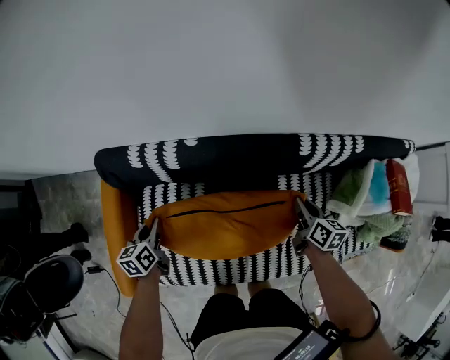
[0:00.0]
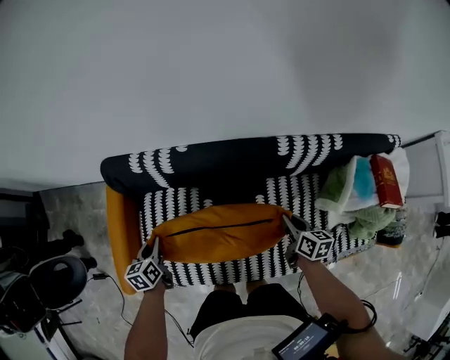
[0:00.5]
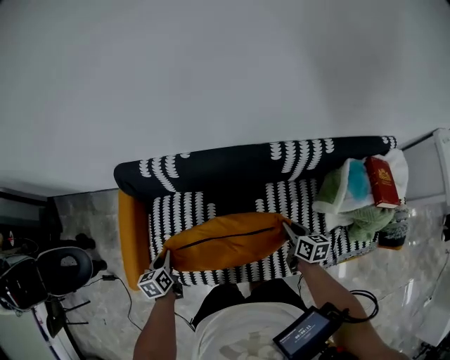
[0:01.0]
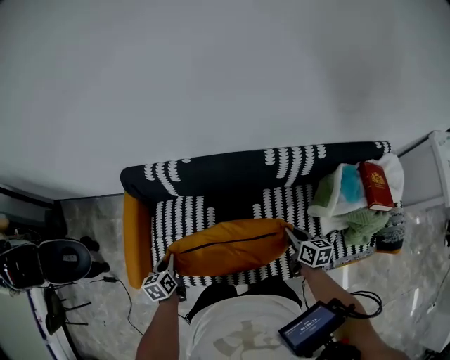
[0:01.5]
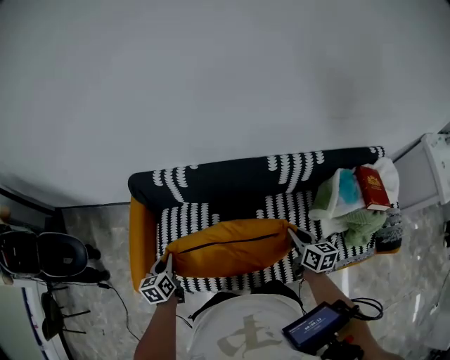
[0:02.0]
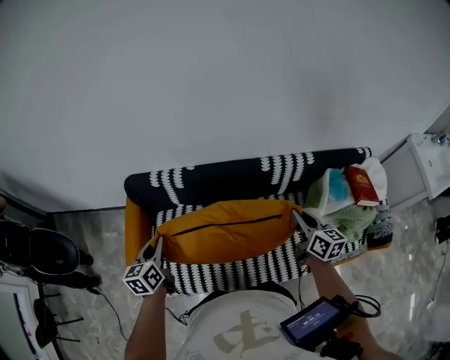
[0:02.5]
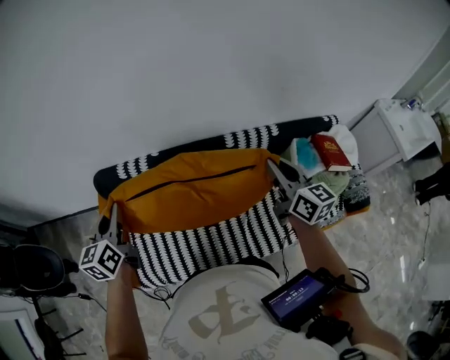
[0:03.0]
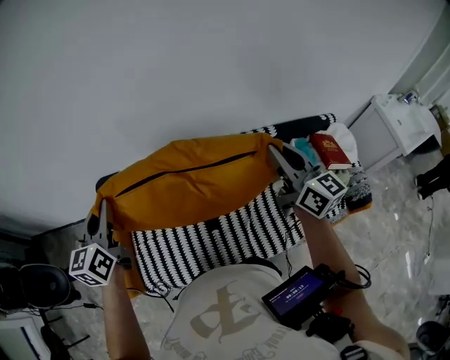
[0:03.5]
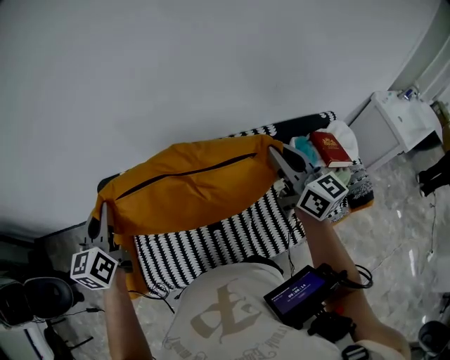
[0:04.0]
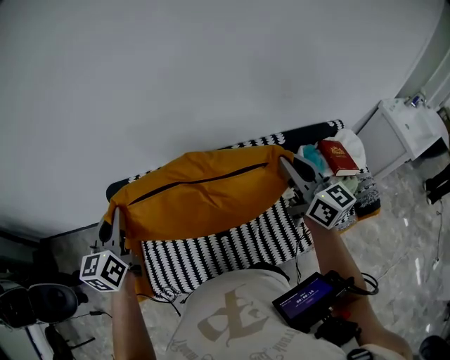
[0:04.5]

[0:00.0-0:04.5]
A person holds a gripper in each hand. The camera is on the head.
0:00.0 to 0:02.0: The left gripper goes some 25 cm backward and upward, while the right gripper goes approximately 20 cm upward and backward.
0:02.0 to 0:04.5: The grippers both shift upward by about 30 cm. The left gripper swivels about 30 degrees. Meanwhile the right gripper points its fingers about 30 degrees further upward.

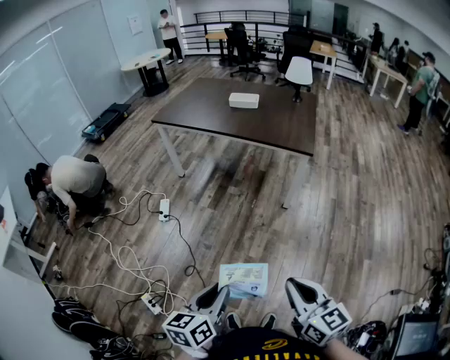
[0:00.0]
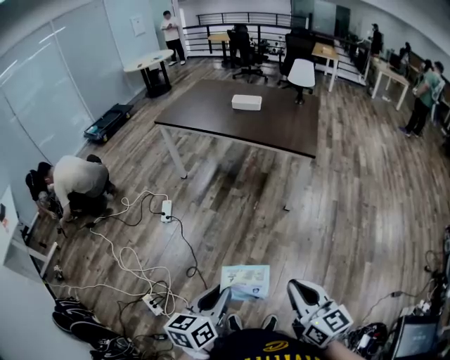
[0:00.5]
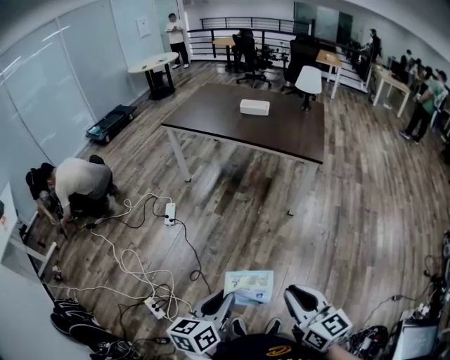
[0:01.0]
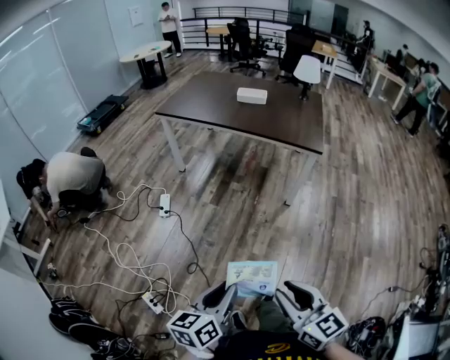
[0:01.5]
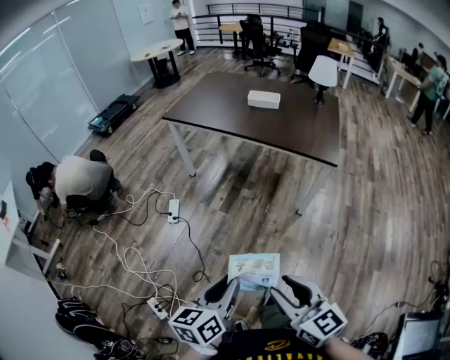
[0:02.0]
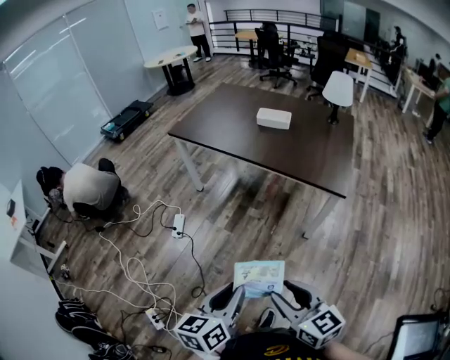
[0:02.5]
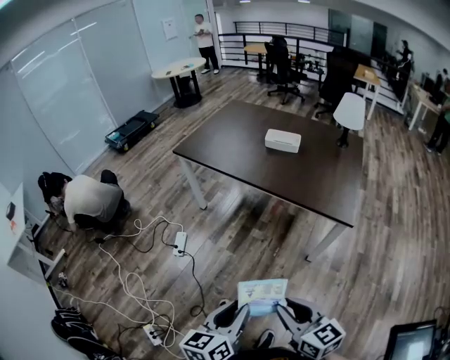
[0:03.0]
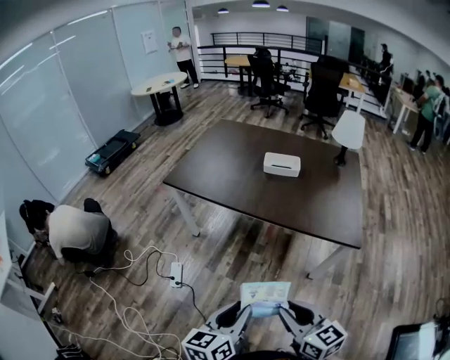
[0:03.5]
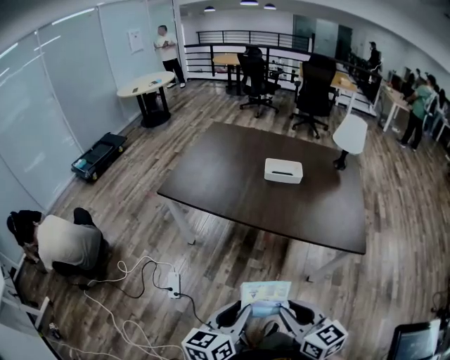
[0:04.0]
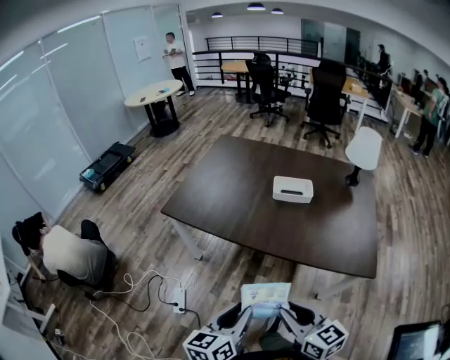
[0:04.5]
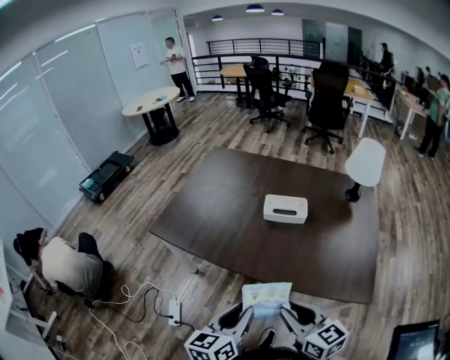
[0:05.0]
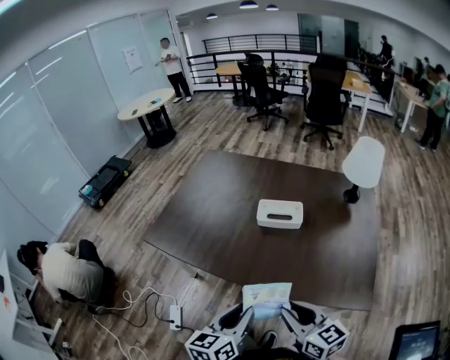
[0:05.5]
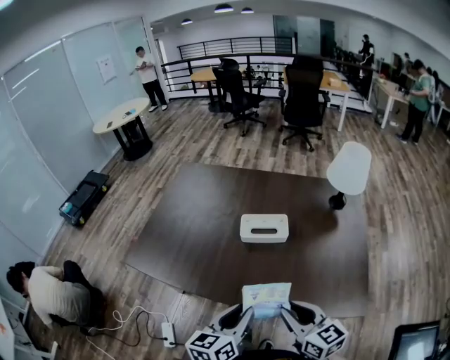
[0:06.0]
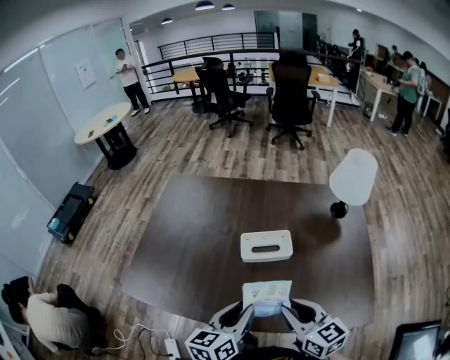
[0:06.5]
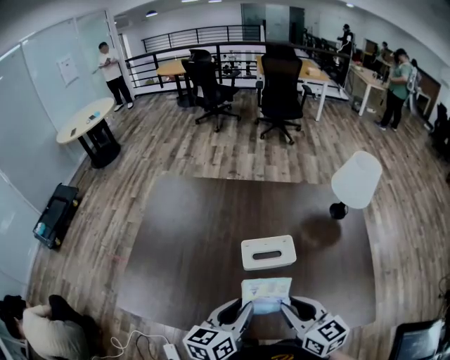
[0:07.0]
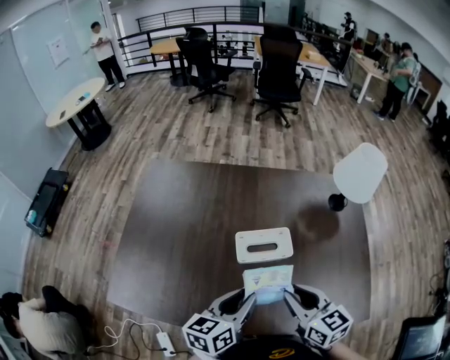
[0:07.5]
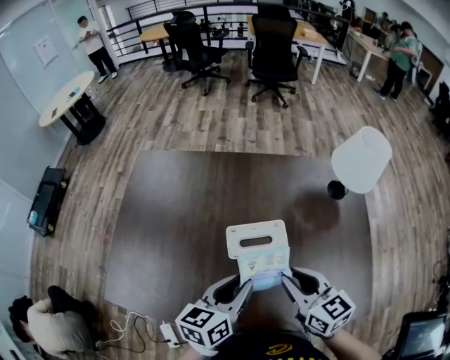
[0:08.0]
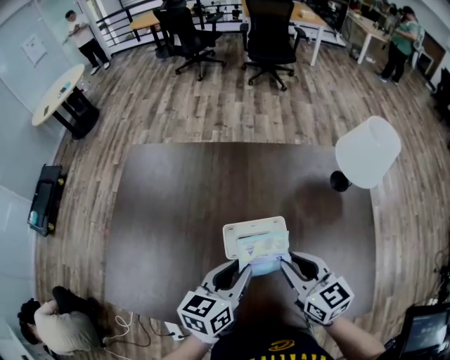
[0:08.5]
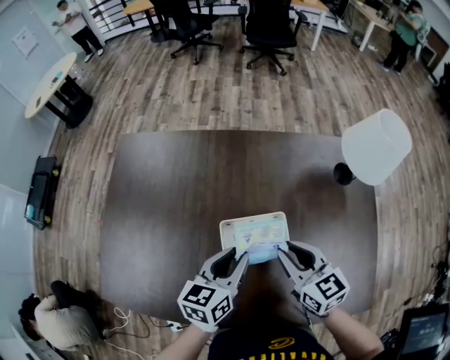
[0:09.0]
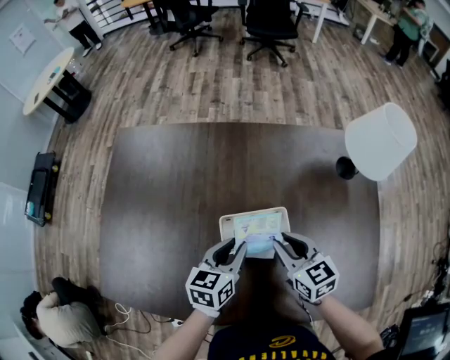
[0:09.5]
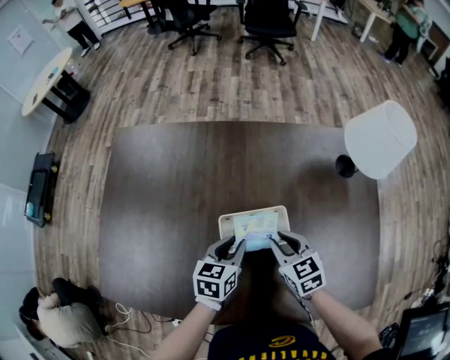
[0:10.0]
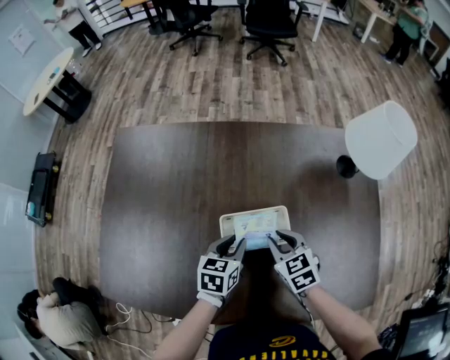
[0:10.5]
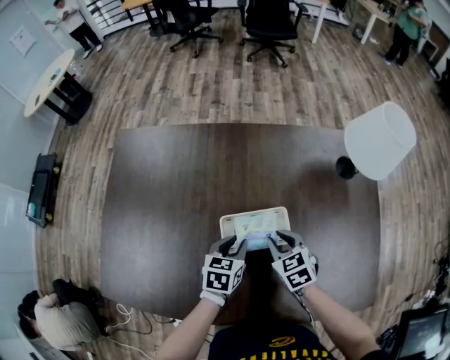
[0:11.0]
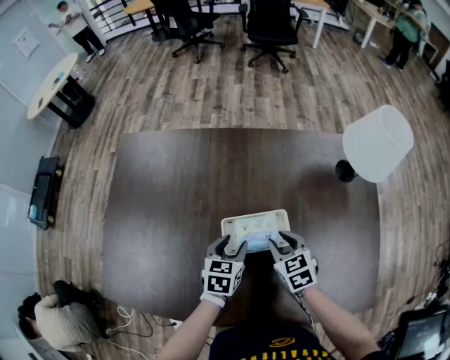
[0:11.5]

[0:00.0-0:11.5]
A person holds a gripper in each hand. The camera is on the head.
0:00.0 to 0:02.0: The left gripper heads forward, covering about 10 cm, while the right gripper heads forward and to the left, covering roughly 15 cm, and opens its fingers.
0:02.0 to 0:04.0: Both grippers are carried forward, about 40 cm.
0:04.0 to 0:06.0: The two grippers go approximately 35 cm forward and to the right.
0:06.0 to 0:07.5: Both grippers move forward, about 20 cm.
0:07.5 to 0:09.5: The two grippers go about 20 cm forward and downward.
0:09.5 to 0:11.5: Both grippers move downward, about 5 cm. The left gripper opens its fingers.

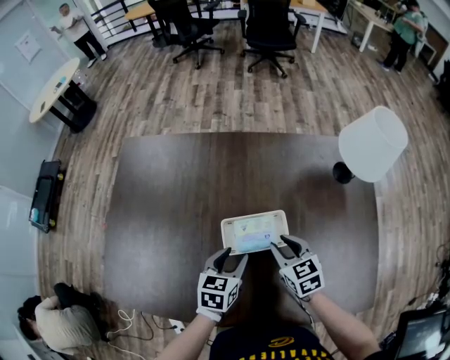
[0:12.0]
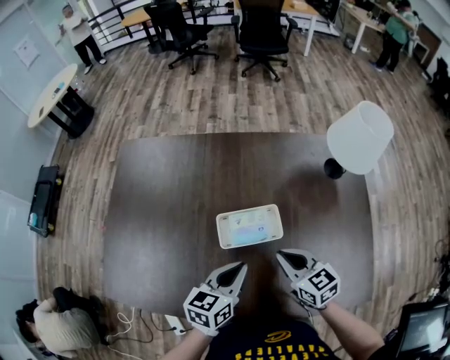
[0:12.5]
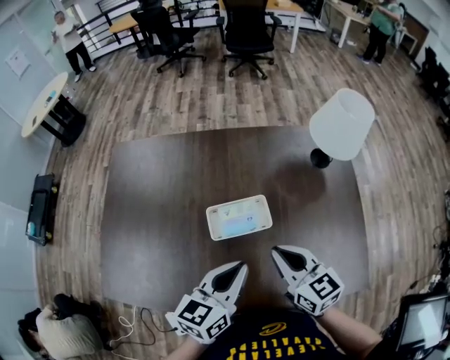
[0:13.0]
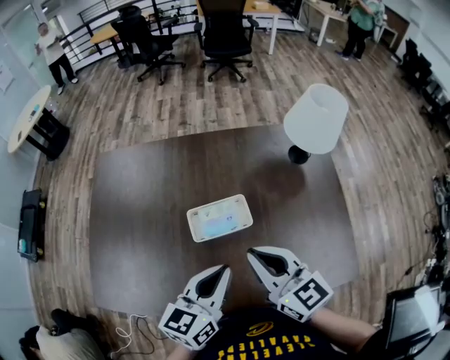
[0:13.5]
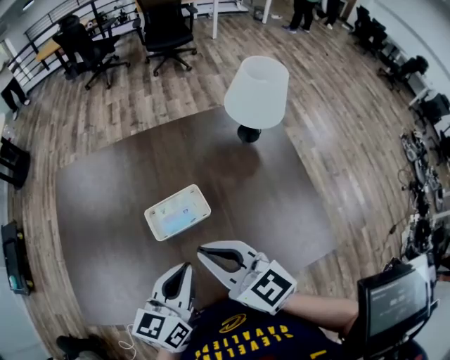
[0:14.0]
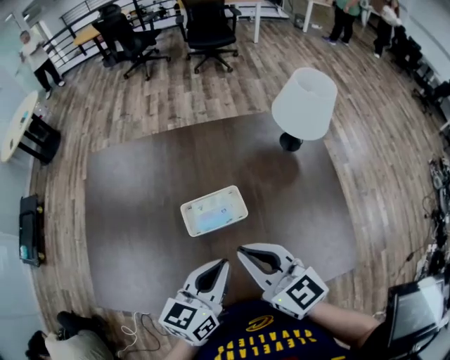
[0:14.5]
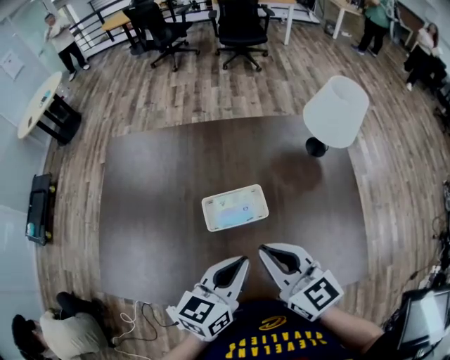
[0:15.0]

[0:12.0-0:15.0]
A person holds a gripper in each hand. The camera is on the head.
0:12.0 to 0:13.5: Both grippers move upward and backward, roughly 20 cm. The left gripper turns by some 30 degrees, and closes its fingers. Meanwhile the right gripper changes its angle by roughly 30 degrees, and closes its fingers.
0:13.5 to 0:15.0: The grippers make only small movements.

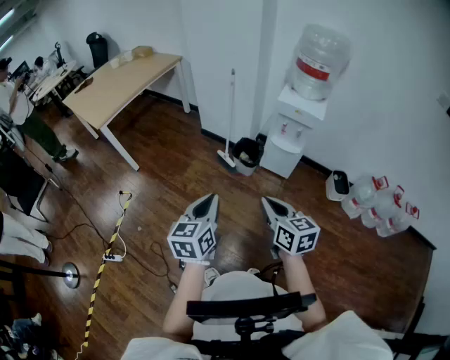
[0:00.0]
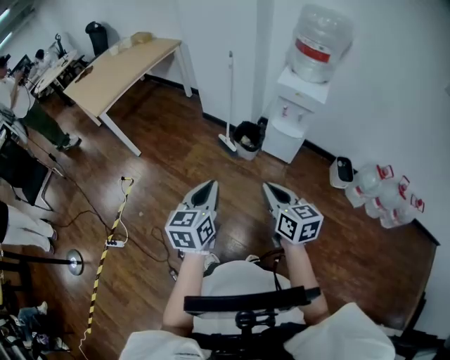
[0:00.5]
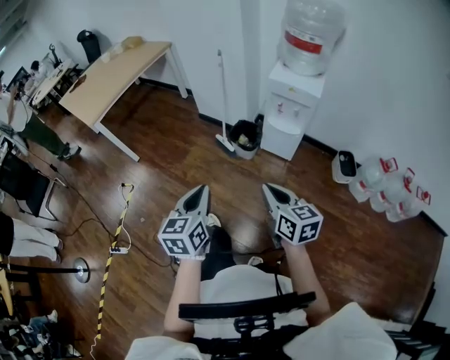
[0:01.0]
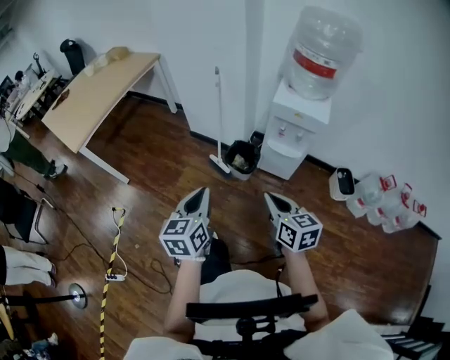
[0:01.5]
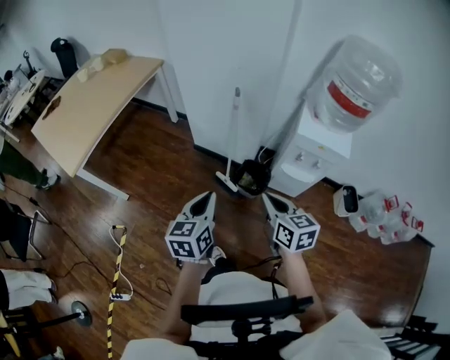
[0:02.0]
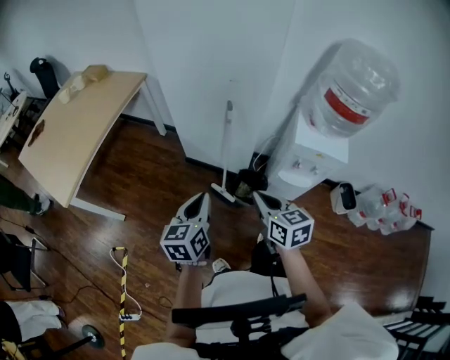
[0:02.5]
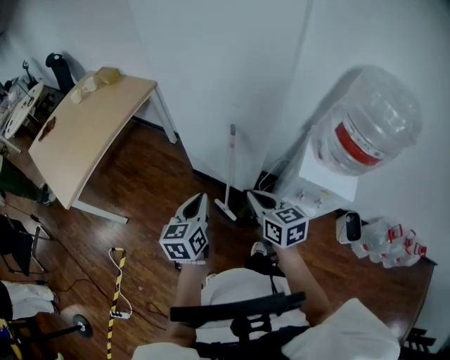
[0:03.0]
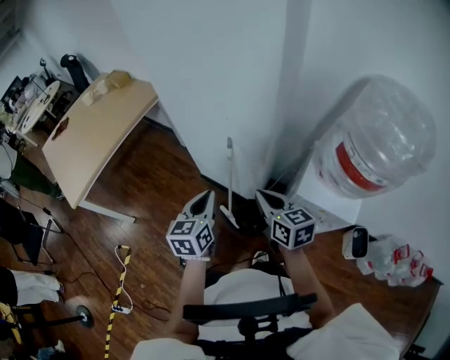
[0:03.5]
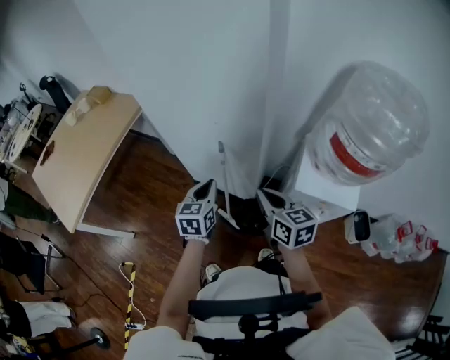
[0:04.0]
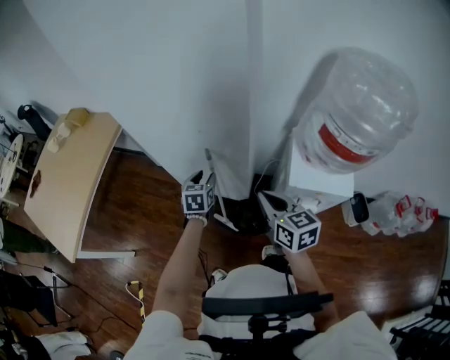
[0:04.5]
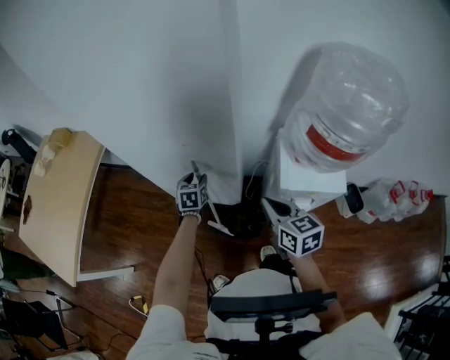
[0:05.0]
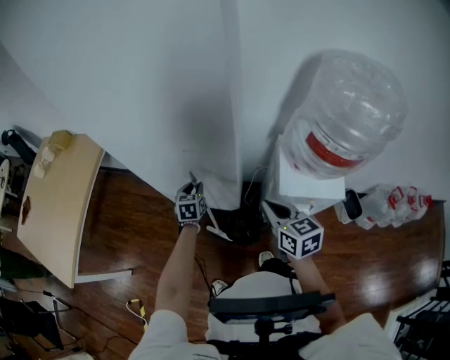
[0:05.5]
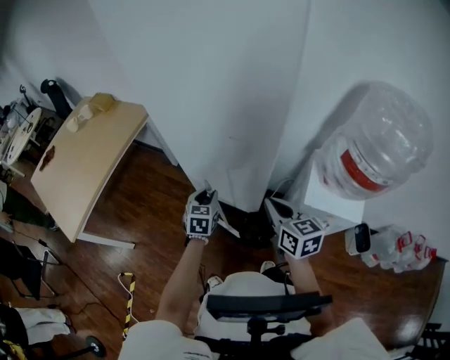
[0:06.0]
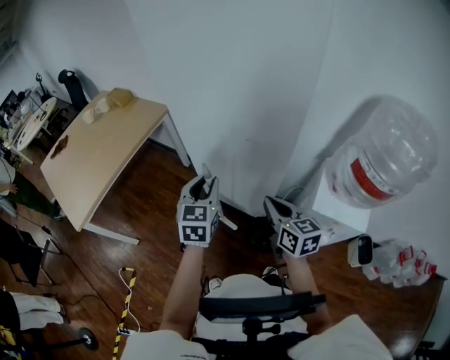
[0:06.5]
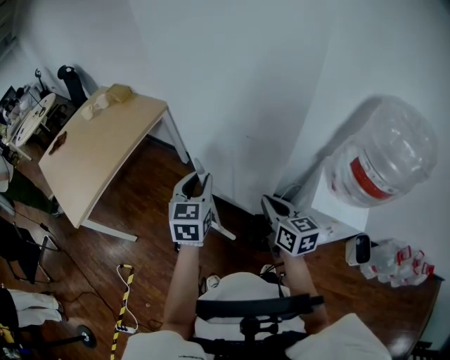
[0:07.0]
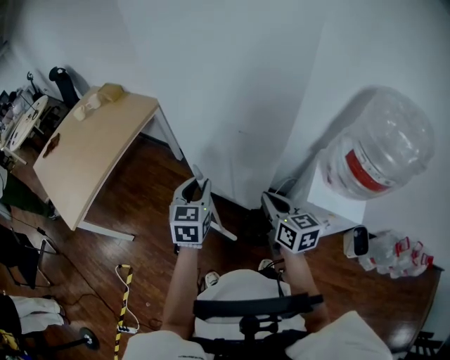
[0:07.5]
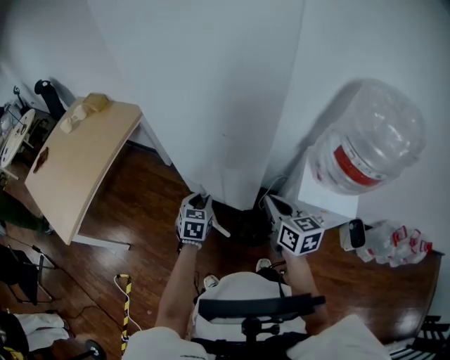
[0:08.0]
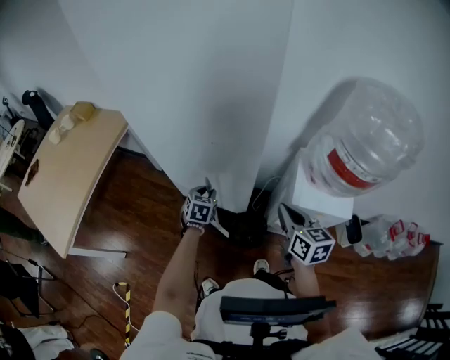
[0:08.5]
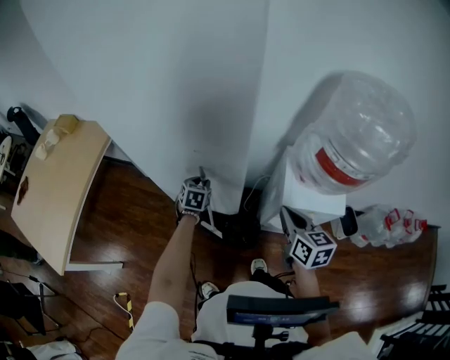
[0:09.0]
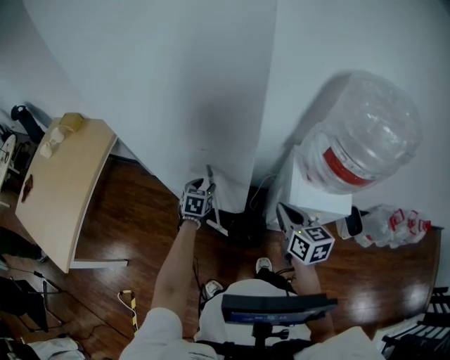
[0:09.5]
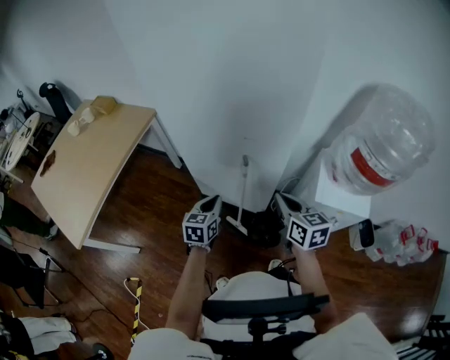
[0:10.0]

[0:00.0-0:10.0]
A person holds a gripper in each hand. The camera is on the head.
0:00.0 to 0:02.0: Both grippers are carried forward, approximately 40 cm.
0:02.0 to 0:04.0: Both grippers travel together forward, roughly 30 cm.
0:04.0 to 0:06.0: The left gripper moves downward and to the left, roughly 10 cm, reaches roughly 15 cm forward, then returns, and opens up, while the right gripper goes to the right and returns, some 5 cm each way.
0:06.0 to 0:08.0: The left gripper reaches approximately 20 cm upward, then returns.
0:08.0 to 0:10.0: The left gripper goes forward and returns, about 15 cm each way, and closes up. Meanwhile the right gripper goes to the right and returns, about 10 cm each way.
